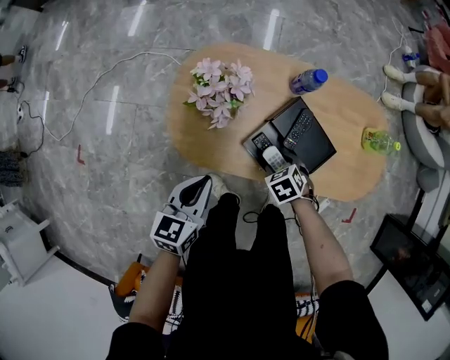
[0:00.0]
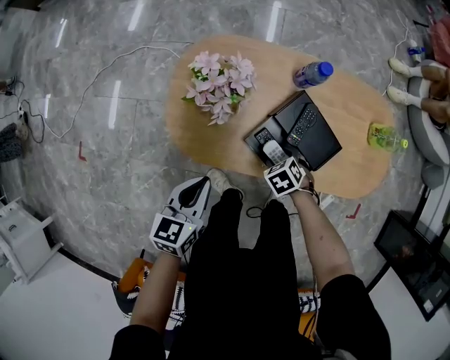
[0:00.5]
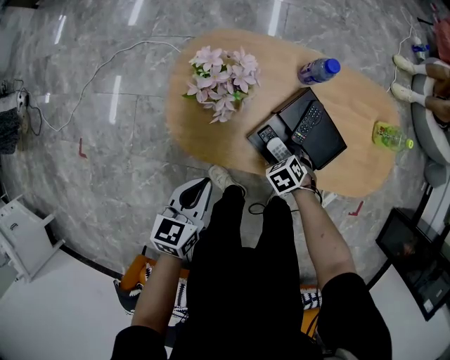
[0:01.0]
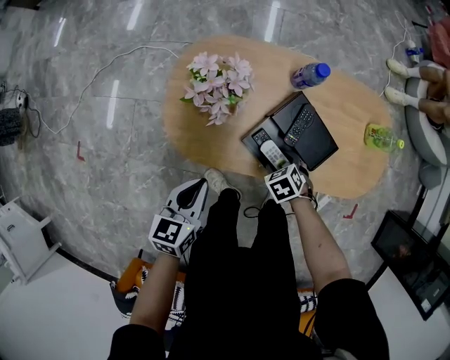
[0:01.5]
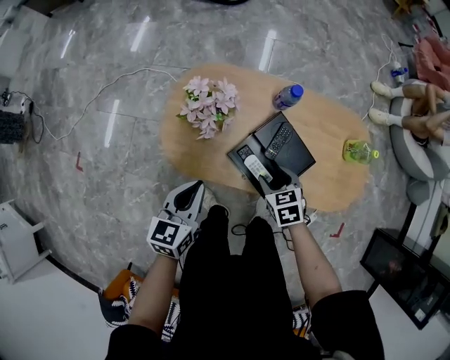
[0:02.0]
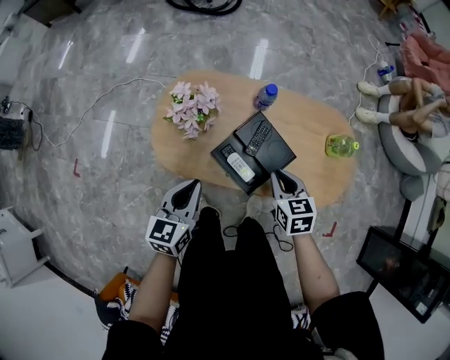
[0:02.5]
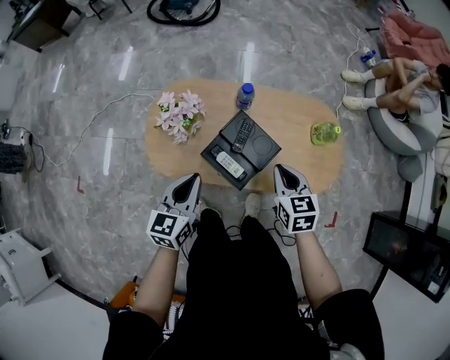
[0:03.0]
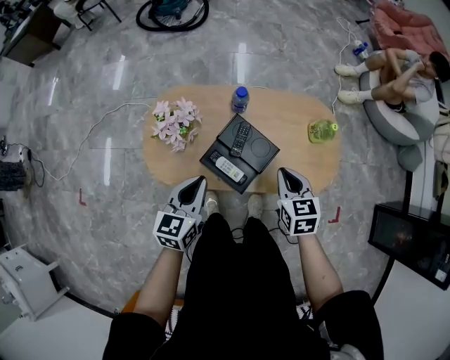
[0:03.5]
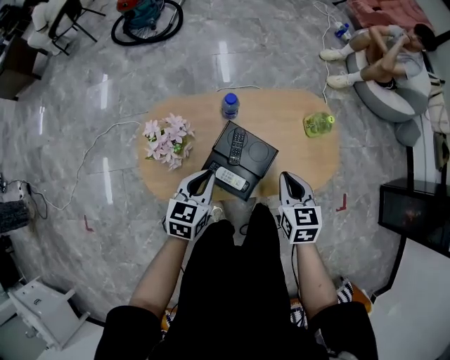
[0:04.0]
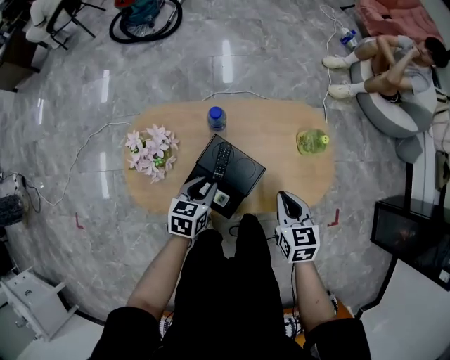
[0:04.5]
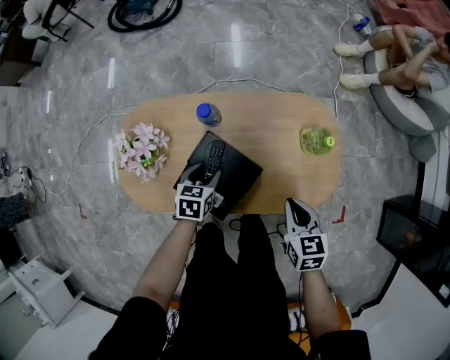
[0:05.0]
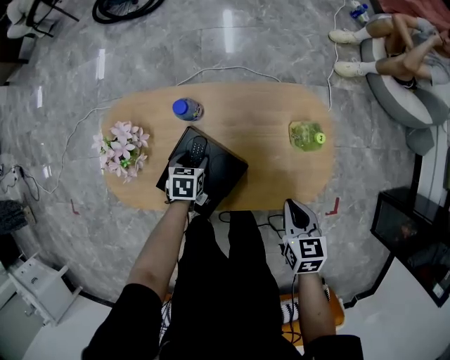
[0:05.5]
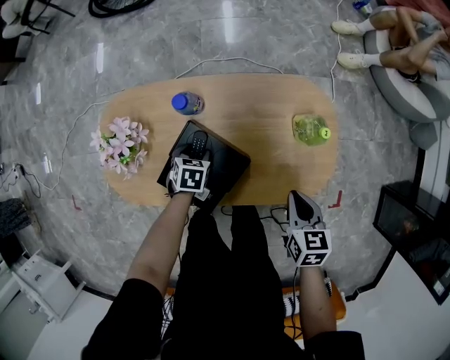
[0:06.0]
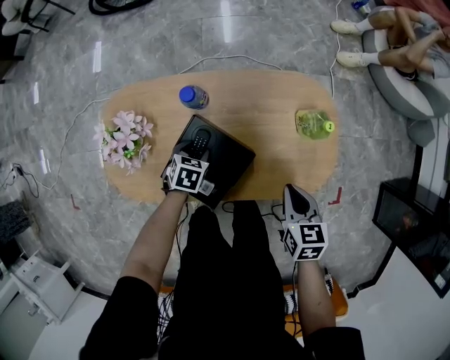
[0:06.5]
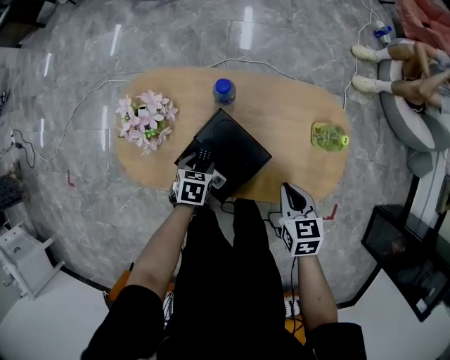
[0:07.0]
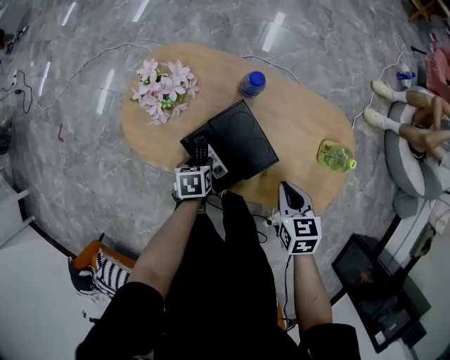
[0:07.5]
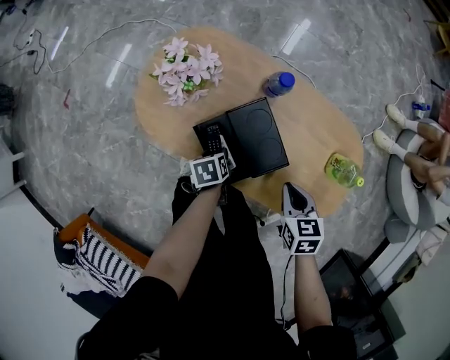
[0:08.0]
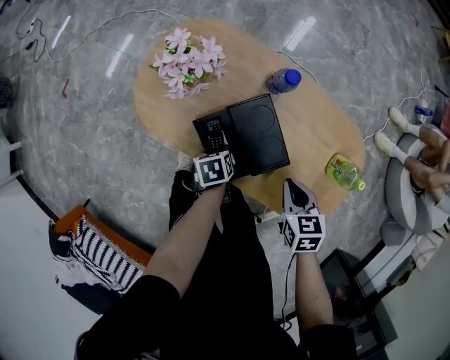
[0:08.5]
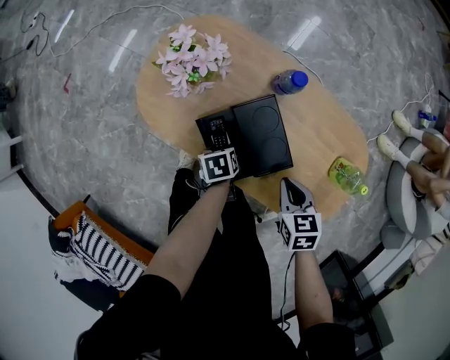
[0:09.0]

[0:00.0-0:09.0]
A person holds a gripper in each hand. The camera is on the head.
0.0 to 2.0 s: The right gripper goes about 10 cm upward, and turns by roughly 20 degrees; the left gripper shifts by some 5 cm.
2.0 to 4.5 s: The left gripper shifts by about 25 cm, and turns by some 20 degrees; the right gripper moves approximately 25 cm, changes its angle by about 30 degrees, and closes up.
4.5 to 7.0 s: The left gripper shifts some 15 cm downward, turns by approximately 20 degrees, and opens up, while the right gripper shifts about 5 cm downward, and reaches roughly 10 cm to the right, then returns.
7.0 to 9.0 s: The right gripper changes place by some 10 cm, and swivels approximately 30 degrees, while the left gripper ends up some 5 cm from where it was, and rolls counterclockwise, seen from behind, by roughly 50 degrees.

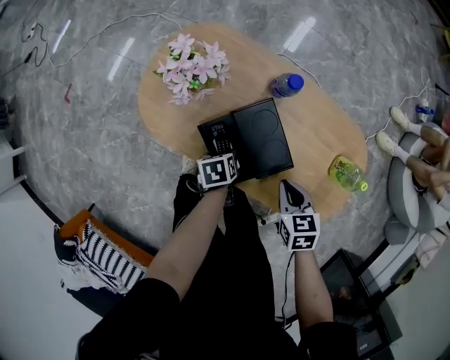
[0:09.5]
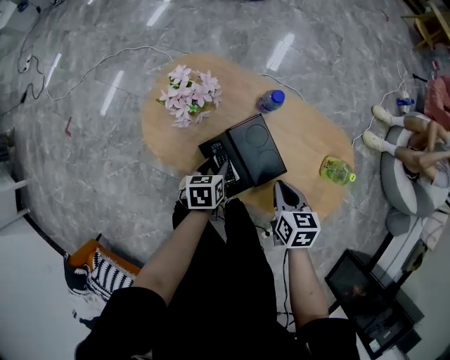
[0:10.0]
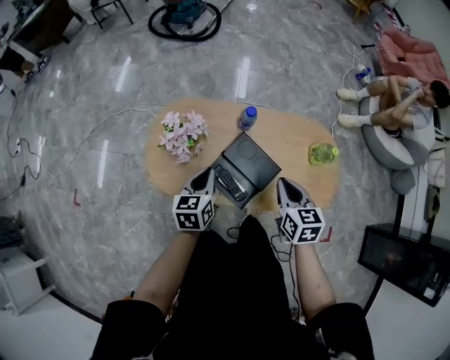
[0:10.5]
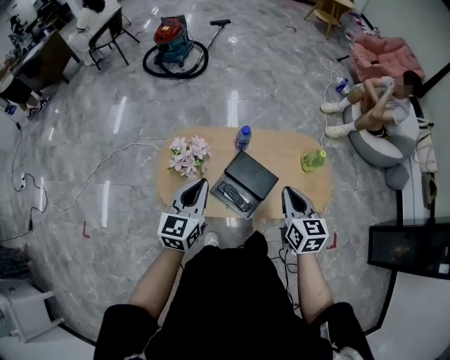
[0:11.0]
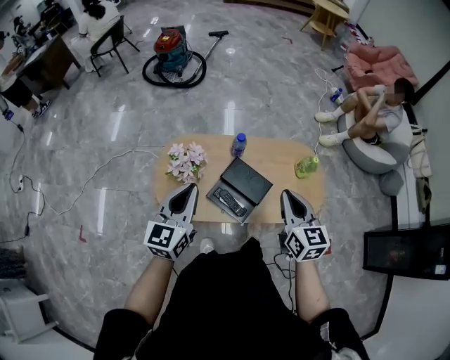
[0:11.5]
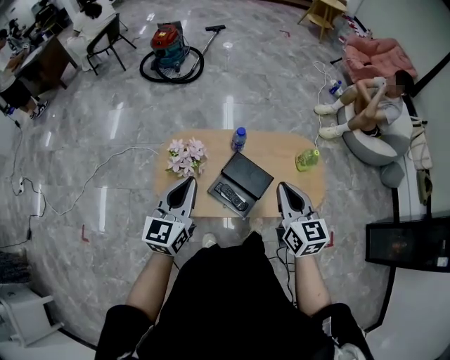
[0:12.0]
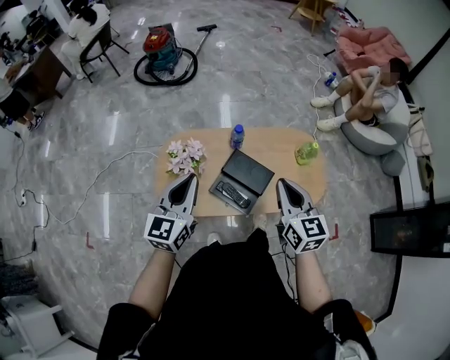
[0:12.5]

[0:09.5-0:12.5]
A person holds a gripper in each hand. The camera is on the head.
9.5 to 11.0 s: The left gripper goes some 40 cm upward, tilts its fingers about 50 degrees upward, and closes, while the right gripper heads upward, covering about 25 cm, and swivels roughly 50 degrees.
11.0 to 12.5 s: Both grippers travel together upward, roughly 5 cm.

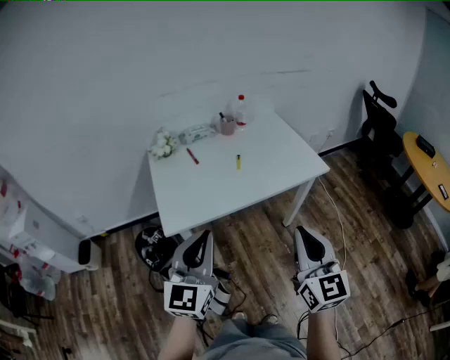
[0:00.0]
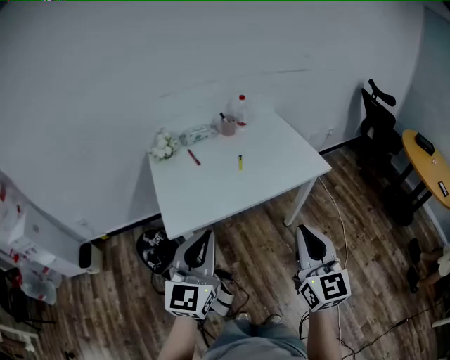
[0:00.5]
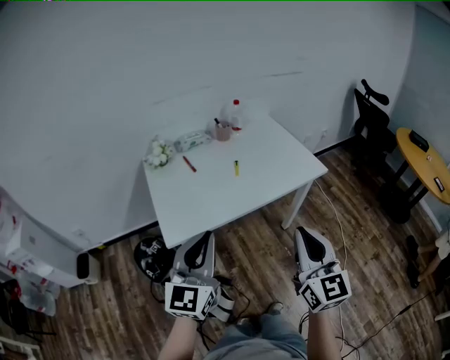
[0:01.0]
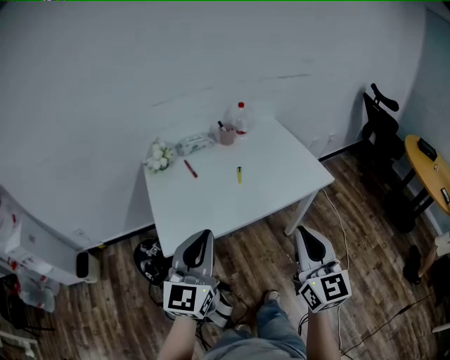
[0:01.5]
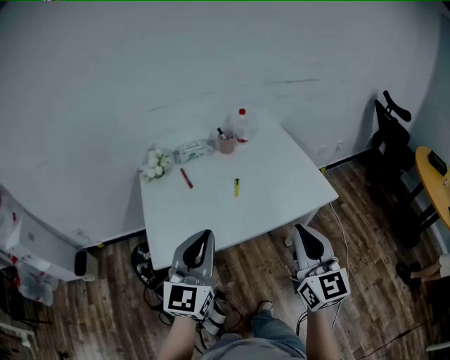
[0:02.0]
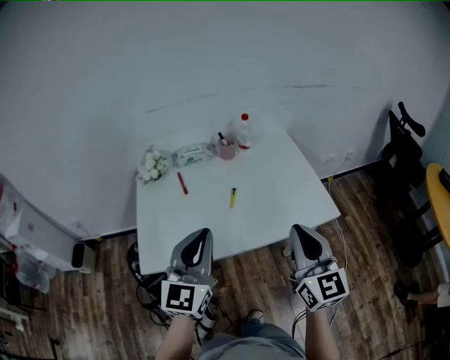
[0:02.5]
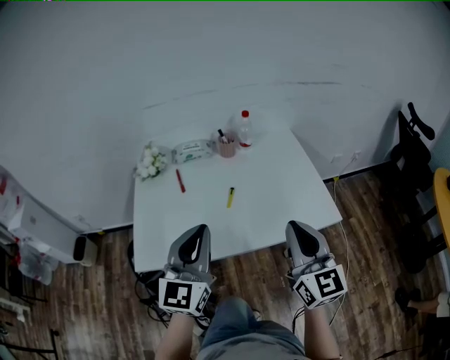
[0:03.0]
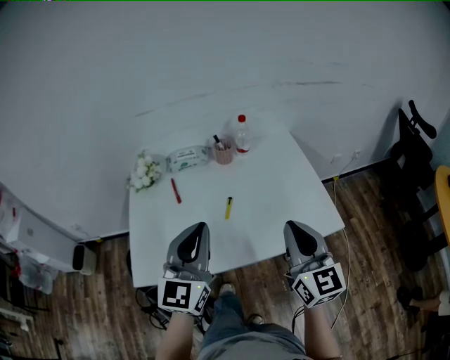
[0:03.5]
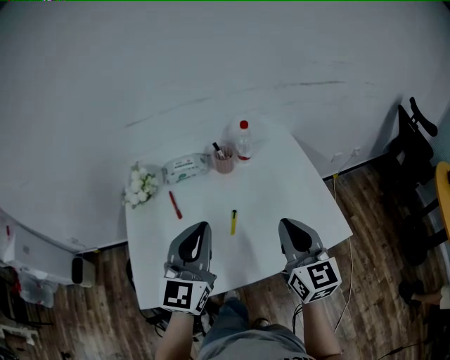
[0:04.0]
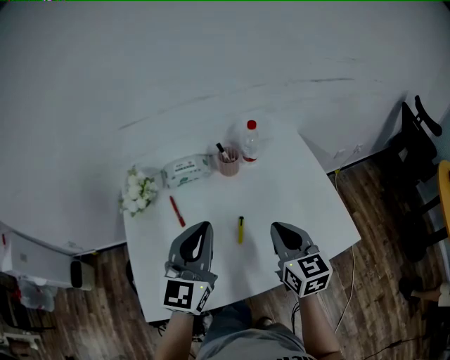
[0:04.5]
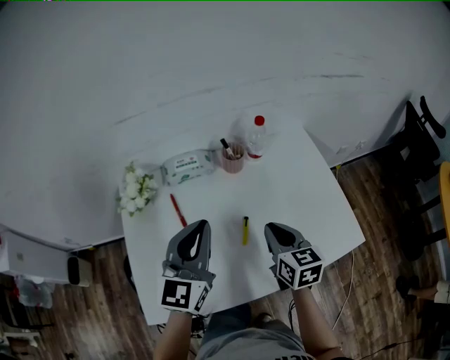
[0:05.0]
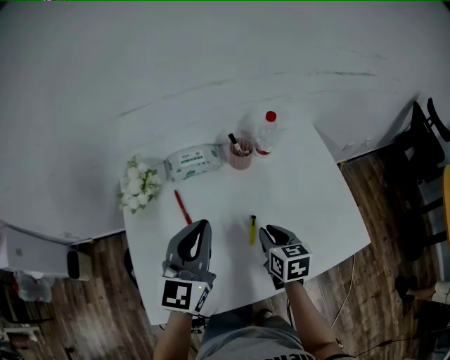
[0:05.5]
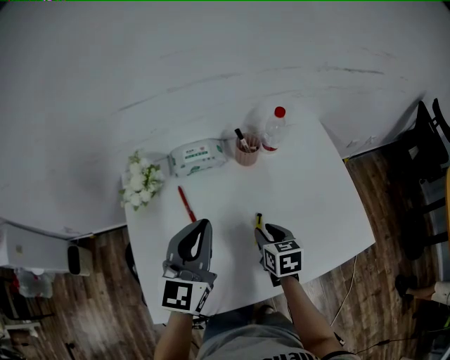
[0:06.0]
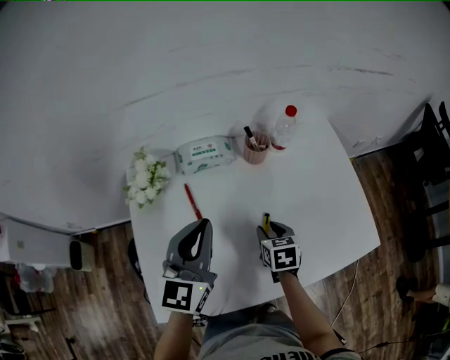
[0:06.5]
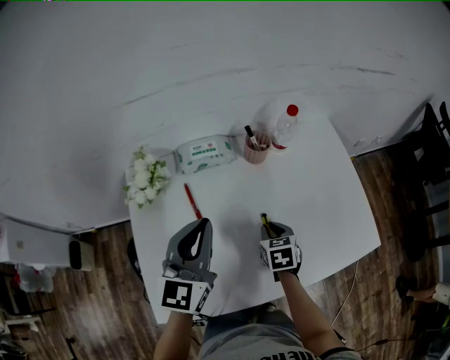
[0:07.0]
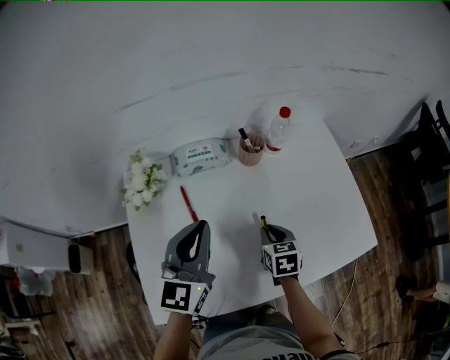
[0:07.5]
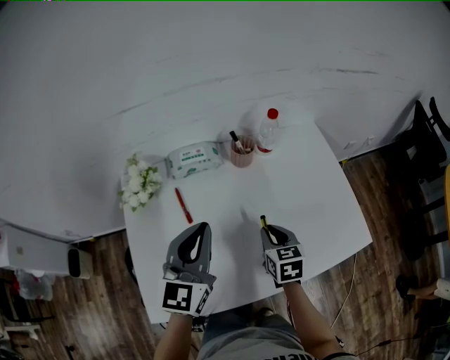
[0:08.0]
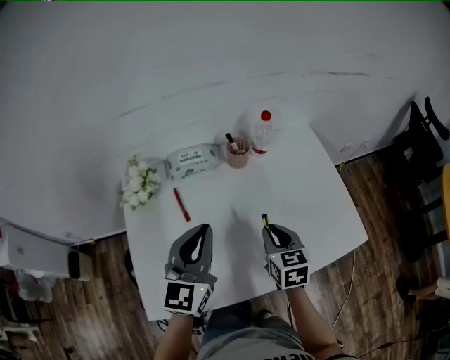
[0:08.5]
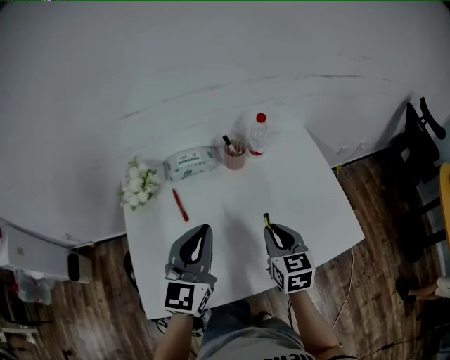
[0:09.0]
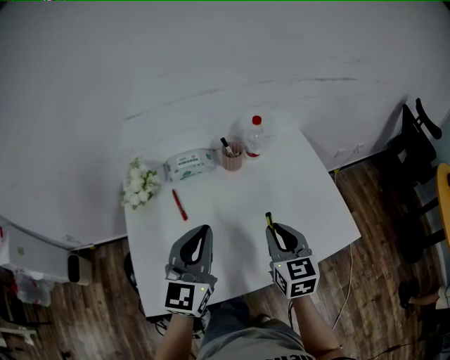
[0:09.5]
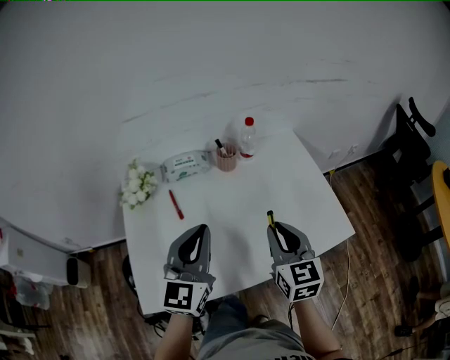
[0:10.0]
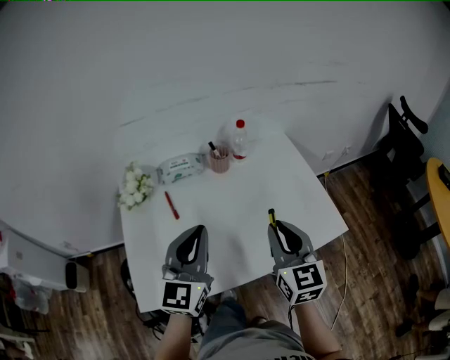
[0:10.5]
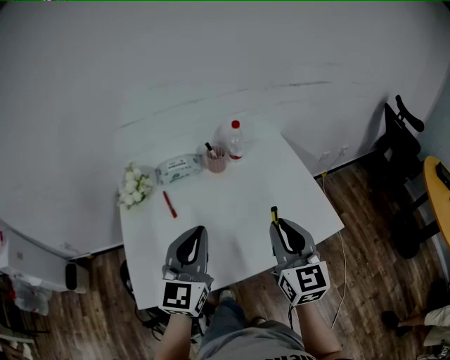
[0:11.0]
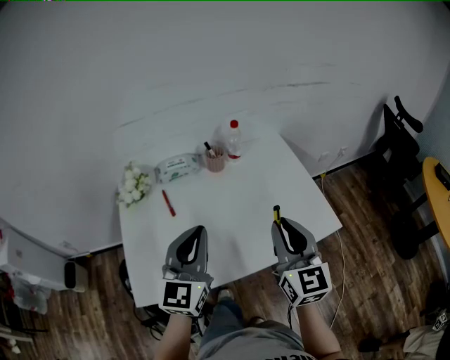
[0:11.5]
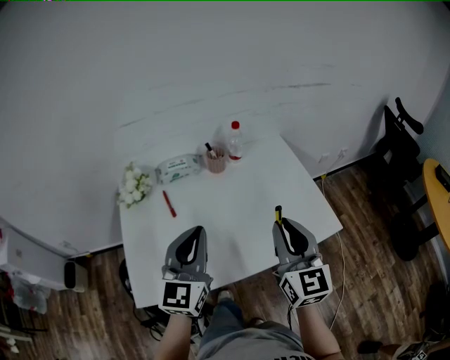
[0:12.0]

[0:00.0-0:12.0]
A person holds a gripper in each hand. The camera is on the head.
0.0 to 2.0 s: The two grippers go about 15 cm forward.
2.0 to 4.0 s: Both grippers travel together forward, about 25 cm.
4.0 to 6.0 s: The right gripper heads downward, forward and to the left, covering some 25 cm, tips its fingers downward by some 40 degrees, and opens its fingers, while the left gripper shifts some 15 cm forward, to the left and downward.
6.0 to 8.0 s: There are only small adjustments of the grippers.
8.0 to 10.0 s: The left gripper moves backward, approximately 5 cm, while the right gripper moves upward and backward, approximately 15 cm, and turns by about 20 degrees.
10.0 to 12.0 s: The left gripper shifts by some 5 cm. The right gripper shifts approximately 10 cm upward and backward.

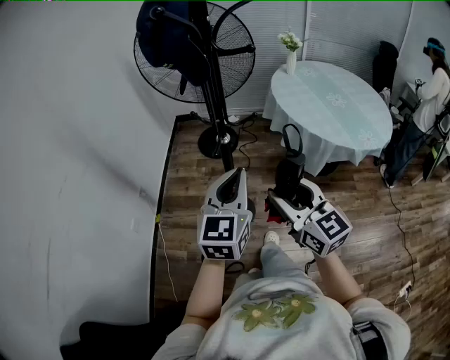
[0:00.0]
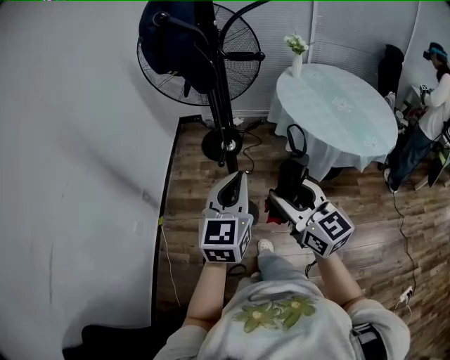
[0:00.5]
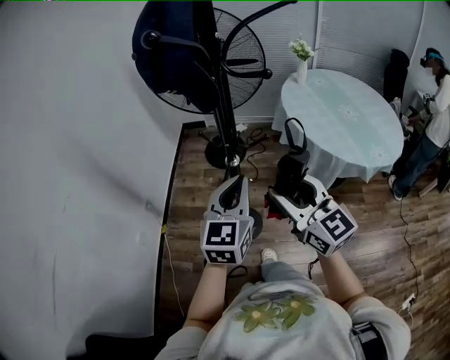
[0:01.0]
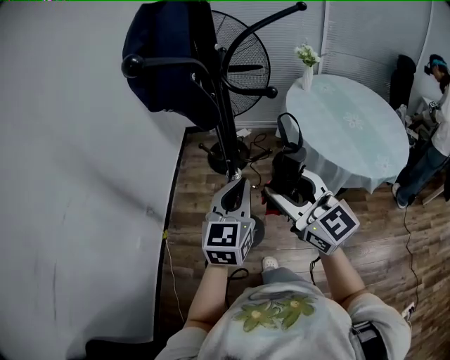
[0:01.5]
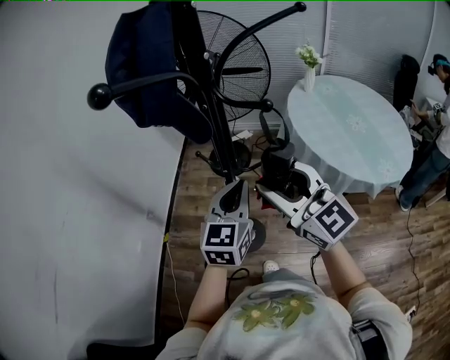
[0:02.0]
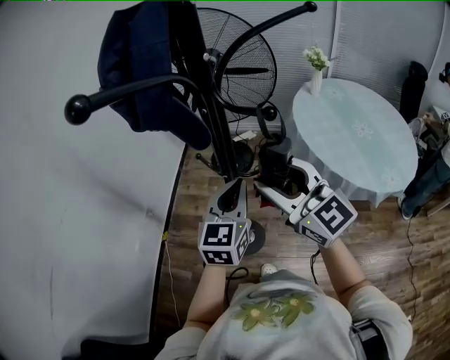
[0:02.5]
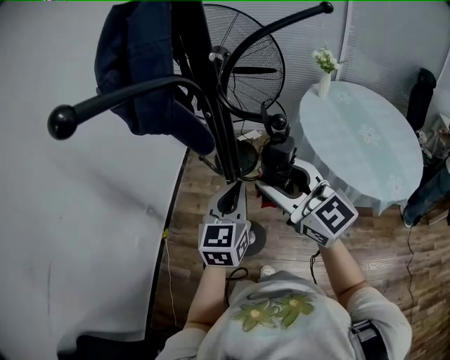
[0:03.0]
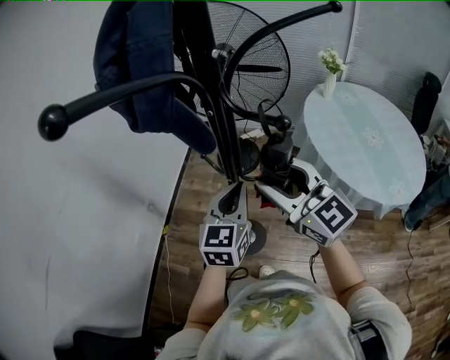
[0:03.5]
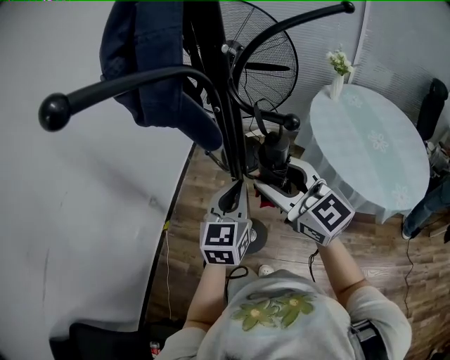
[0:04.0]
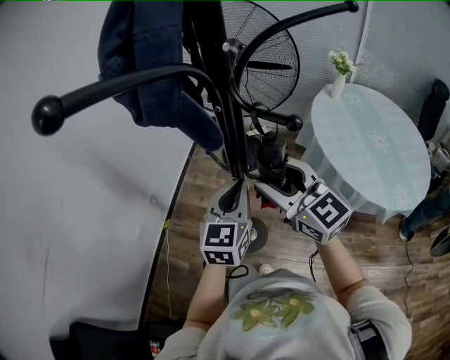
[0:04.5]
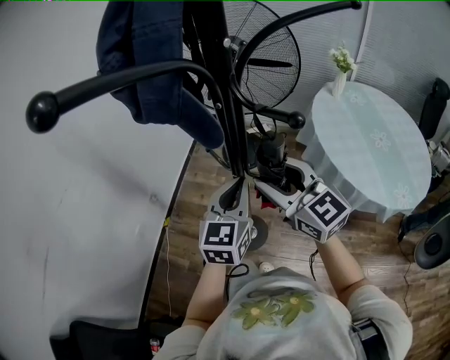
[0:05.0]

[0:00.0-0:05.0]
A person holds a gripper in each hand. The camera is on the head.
0.0 to 2.5 s: The two grippers go approximately 20 cm forward. The right gripper rotates roughly 20 degrees.
2.5 to 5.0 s: The right gripper is displaced downward and forward by some 10 cm.
